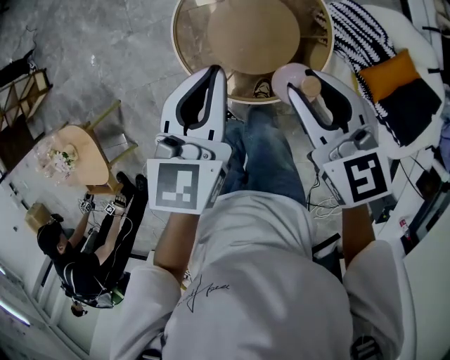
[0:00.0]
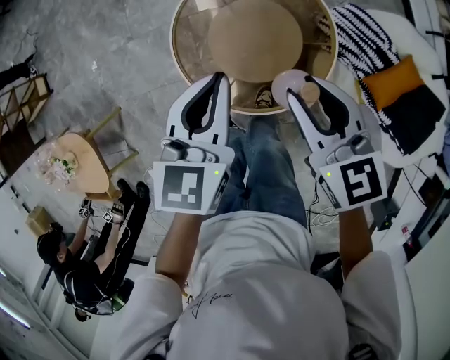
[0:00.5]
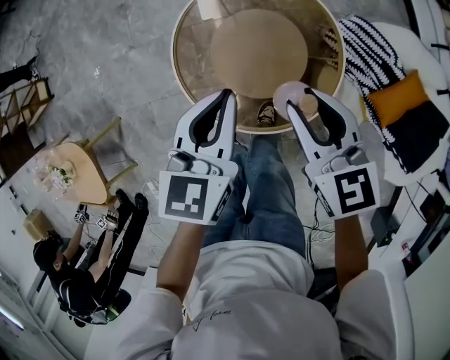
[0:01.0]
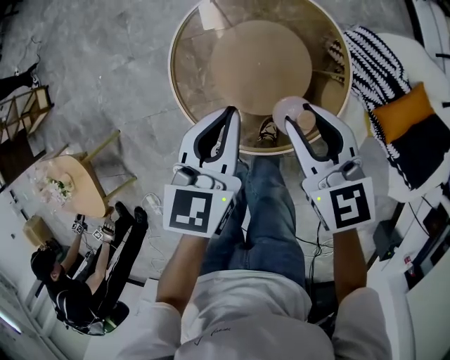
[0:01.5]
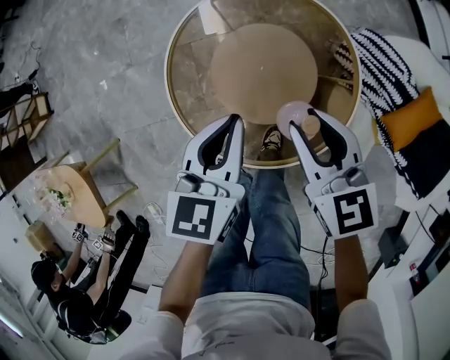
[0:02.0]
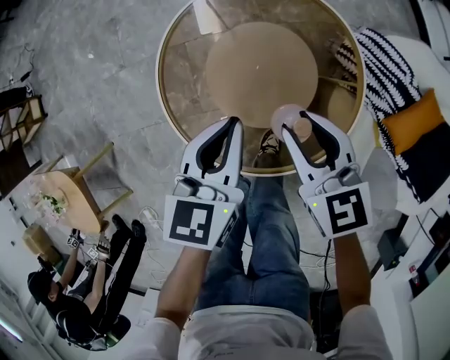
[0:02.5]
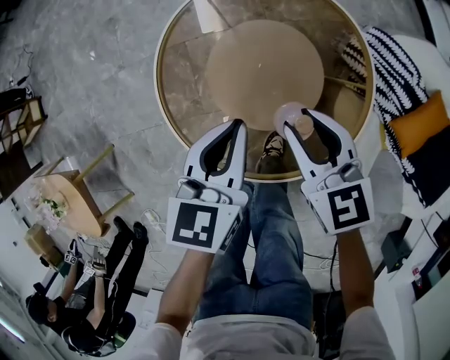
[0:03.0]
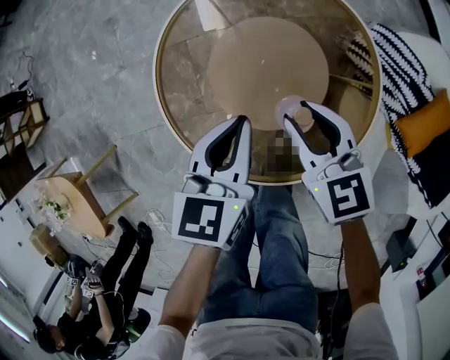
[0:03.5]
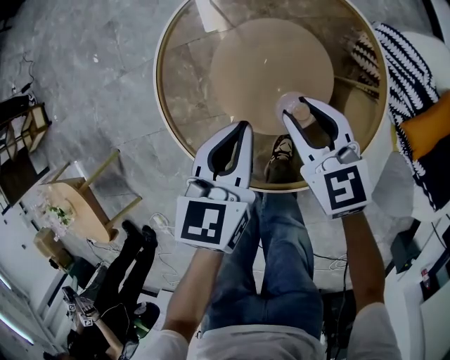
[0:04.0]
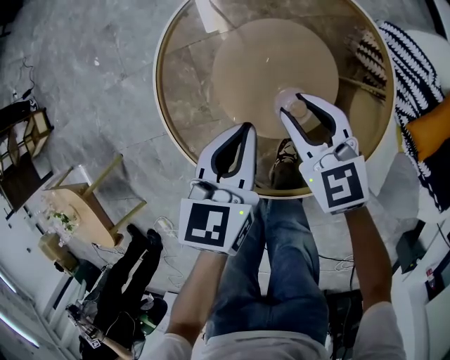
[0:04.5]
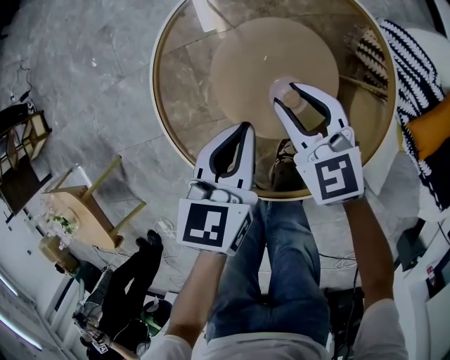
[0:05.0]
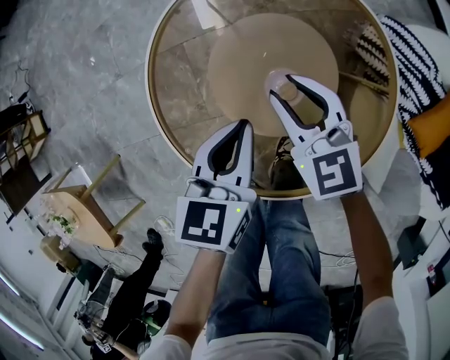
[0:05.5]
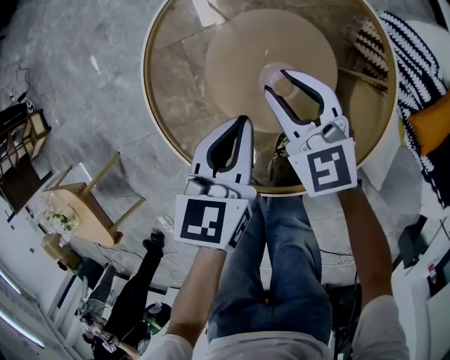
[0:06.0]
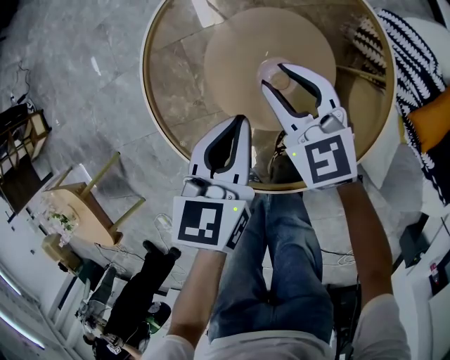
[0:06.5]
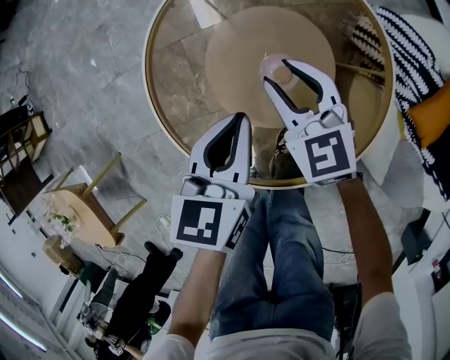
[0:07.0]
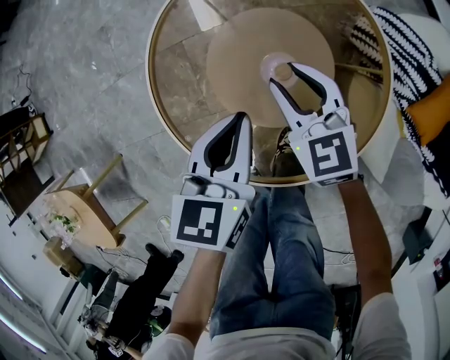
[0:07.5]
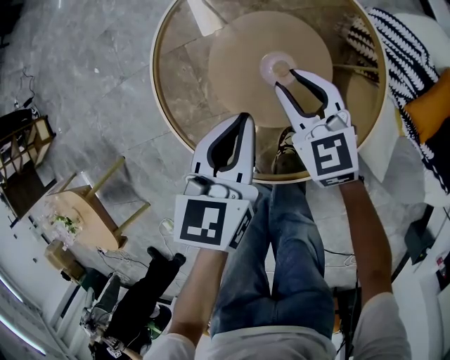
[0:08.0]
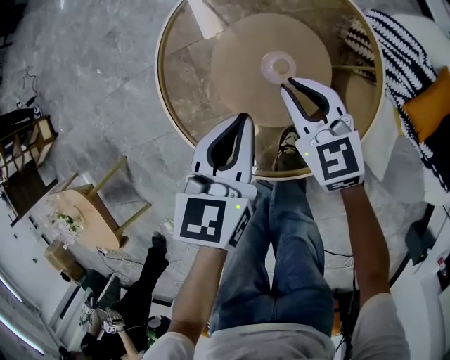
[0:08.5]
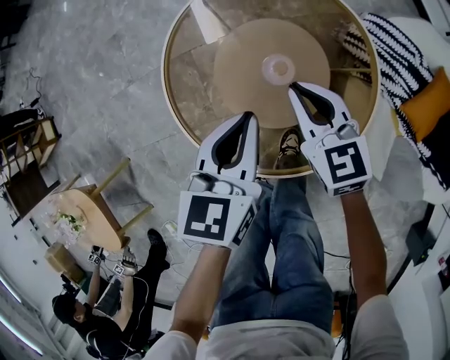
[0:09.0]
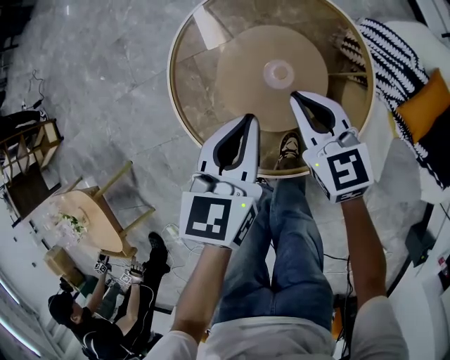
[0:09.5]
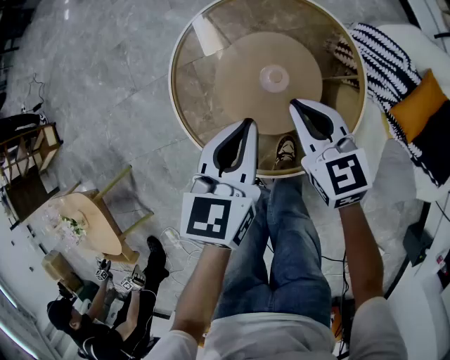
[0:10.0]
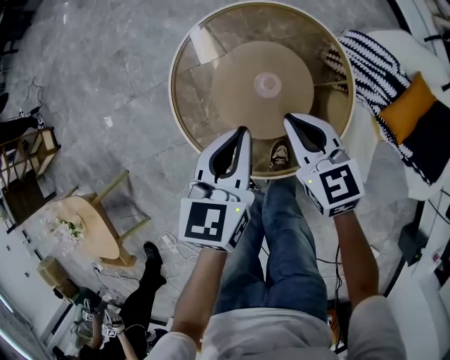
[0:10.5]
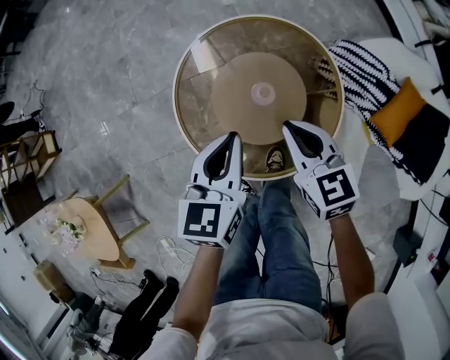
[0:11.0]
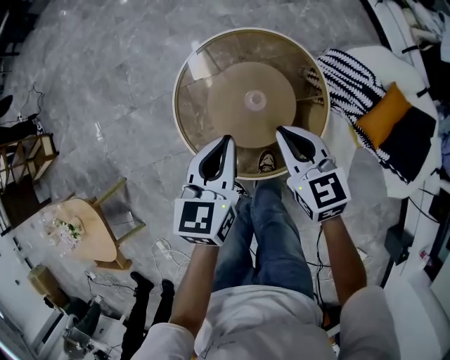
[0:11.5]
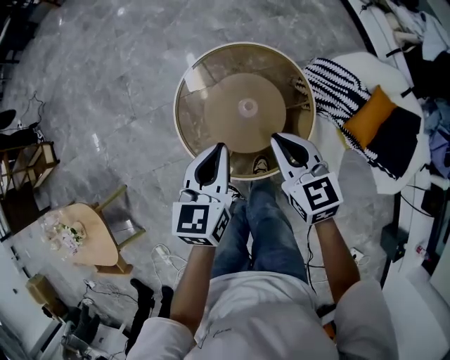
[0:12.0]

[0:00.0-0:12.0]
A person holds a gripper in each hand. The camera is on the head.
0:00.0 to 0:02.0: The two grippers go some 20 cm downward.
0:02.0 to 0:04.0: The two grippers go some 15 cm downward.
0:04.0 to 0:06.0: The right gripper changes place by some 5 cm.
0:06.0 to 0:08.0: The left gripper moves some 5 cm.
0:08.0 to 0:10.0: Both grippers move upward, some 10 cm. The right gripper closes.
0:10.0 to 0:12.0: The grippers both shift upward by some 15 cm.

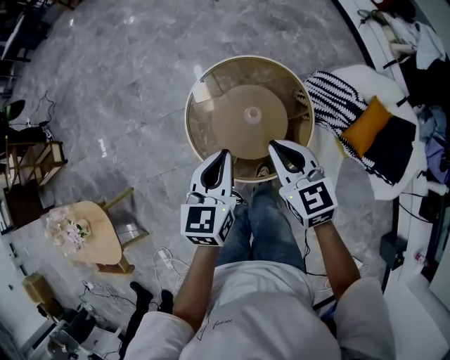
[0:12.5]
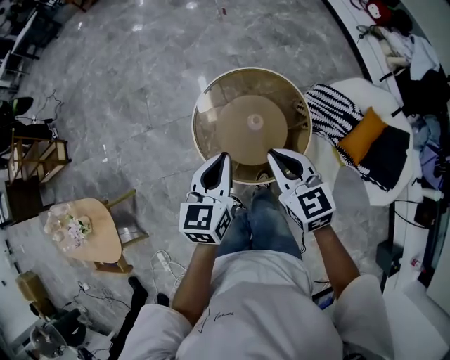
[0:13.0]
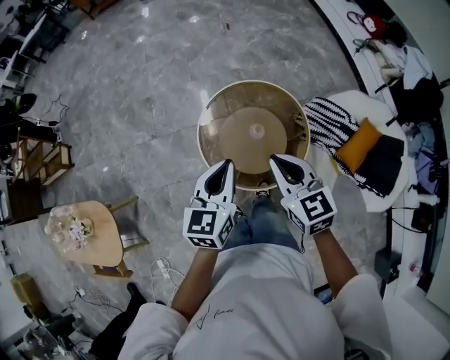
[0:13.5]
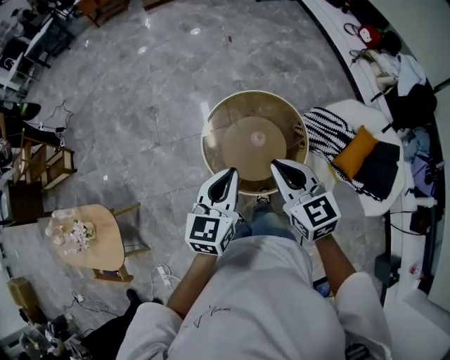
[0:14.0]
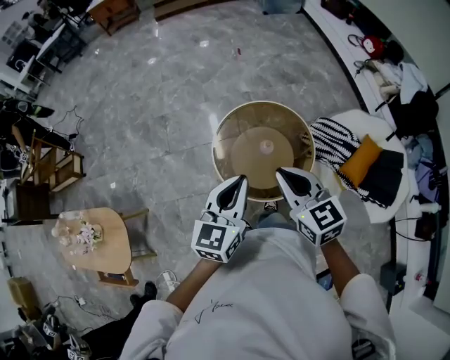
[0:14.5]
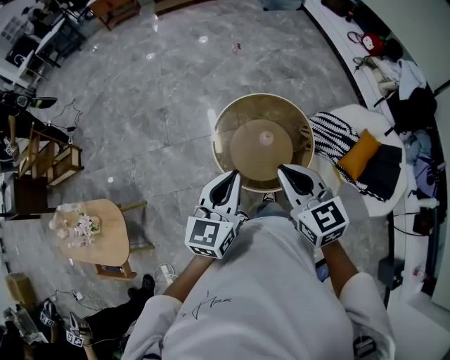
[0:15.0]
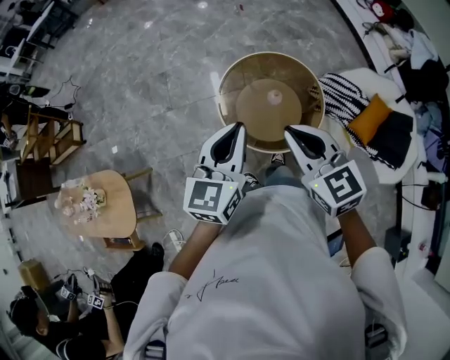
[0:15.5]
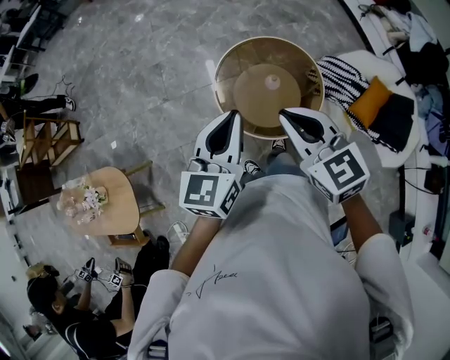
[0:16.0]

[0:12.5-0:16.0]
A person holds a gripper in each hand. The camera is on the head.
0:12.5 to 0:14.5: Both grippers move upward and backward, roughly 20 cm.
0:14.5 to 0:16.0: The right gripper ends up about 5 cm from where it was; the left gripper is displaced to the left by approximately 5 cm.

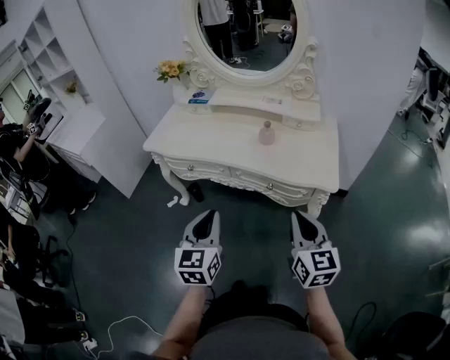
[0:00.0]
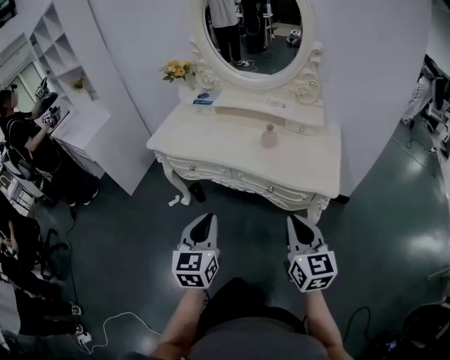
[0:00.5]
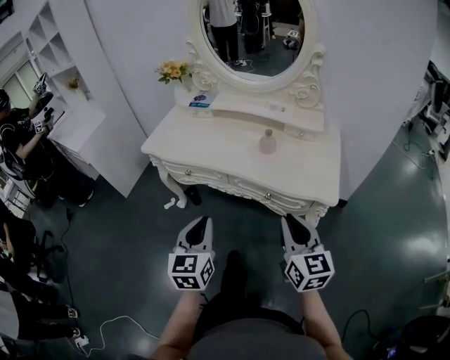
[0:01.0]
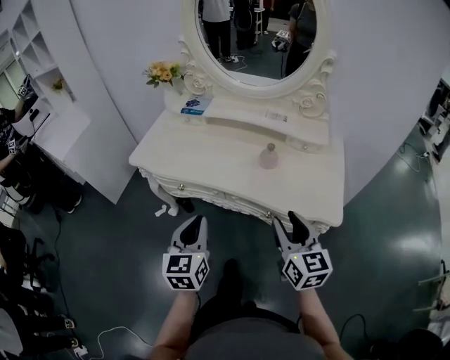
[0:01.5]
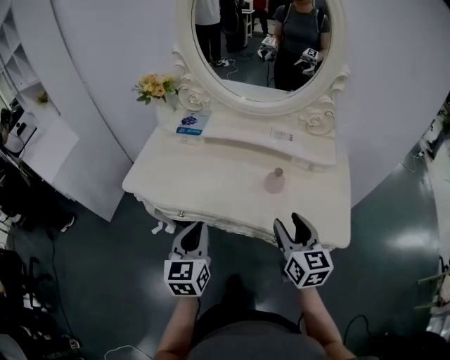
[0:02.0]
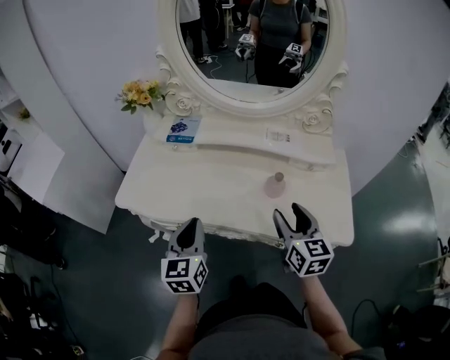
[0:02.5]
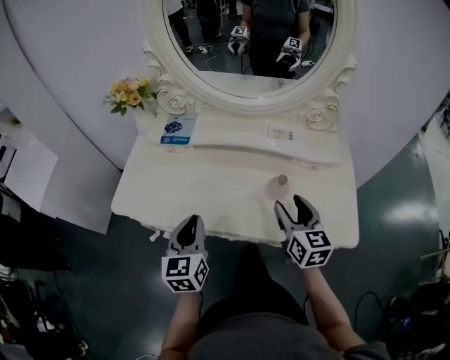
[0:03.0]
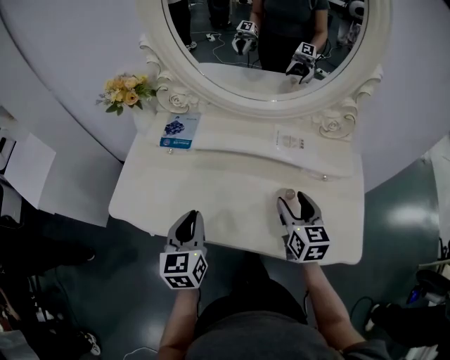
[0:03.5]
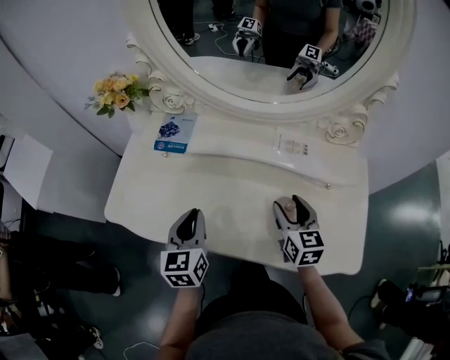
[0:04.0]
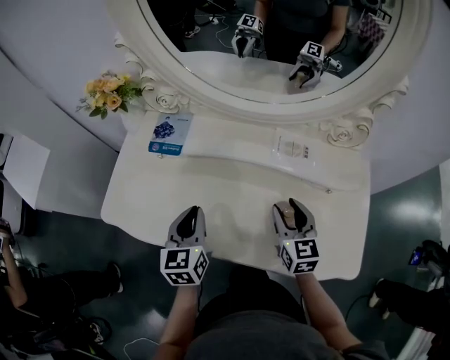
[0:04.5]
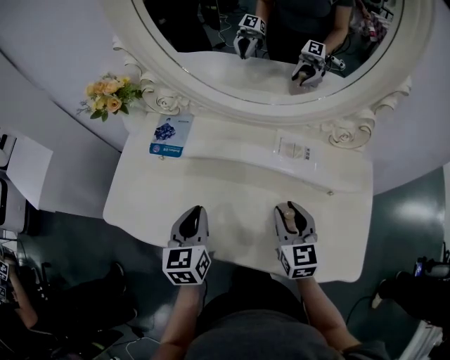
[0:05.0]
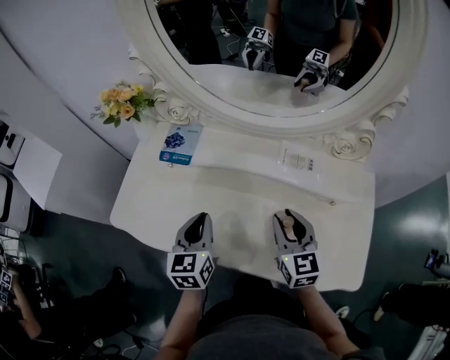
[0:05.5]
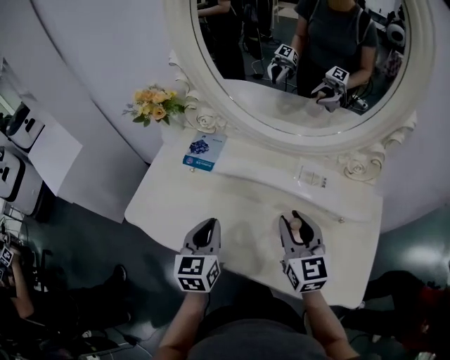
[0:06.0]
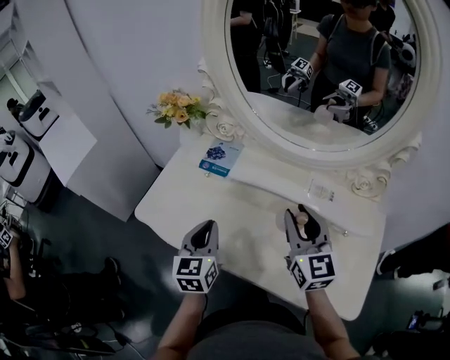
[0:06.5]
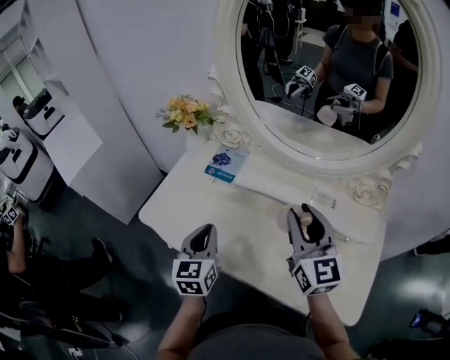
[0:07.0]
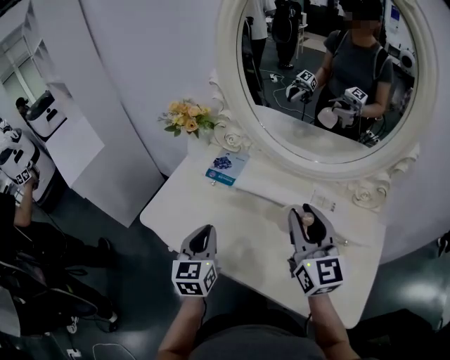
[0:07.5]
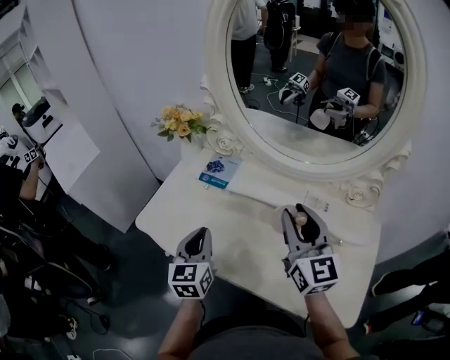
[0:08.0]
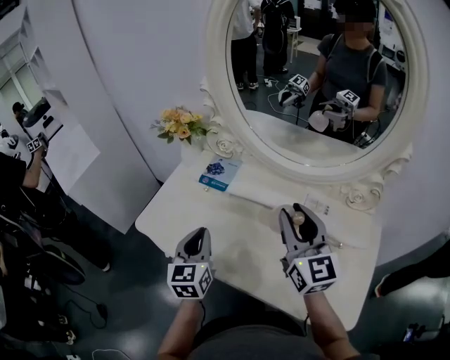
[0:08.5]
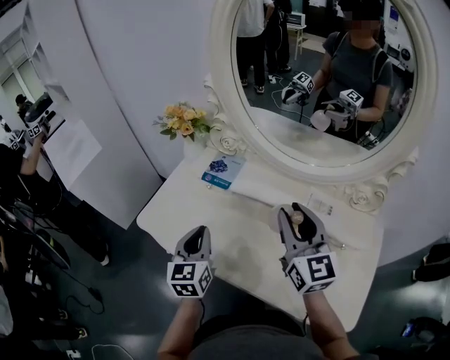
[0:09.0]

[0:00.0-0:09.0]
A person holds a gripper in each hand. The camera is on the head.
0:00.0 to 0:02.0: Both grippers move forward, about 25 cm. The right gripper opens.
0:02.0 to 0:04.5: The left gripper heads forward, covering roughly 20 cm. The right gripper moves forward and downward, roughly 25 cm.
0:04.5 to 0:07.0: The left gripper heads to the left and upward, covering some 10 cm; the right gripper shifts approximately 20 cm upward and to the left, and turns by roughly 30 degrees.
0:07.0 to 0:09.0: The grippers stay close to where they were, moving slightly.

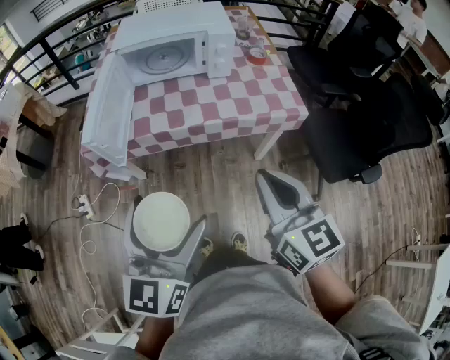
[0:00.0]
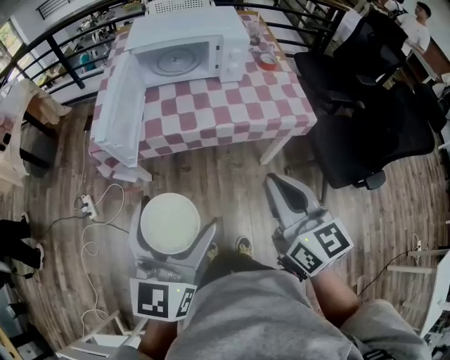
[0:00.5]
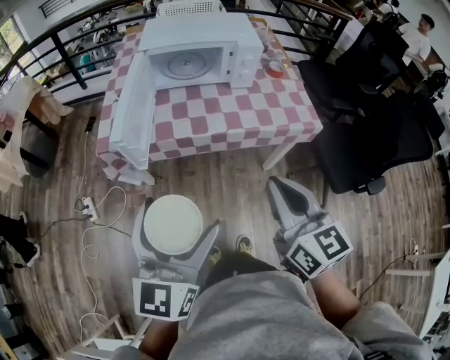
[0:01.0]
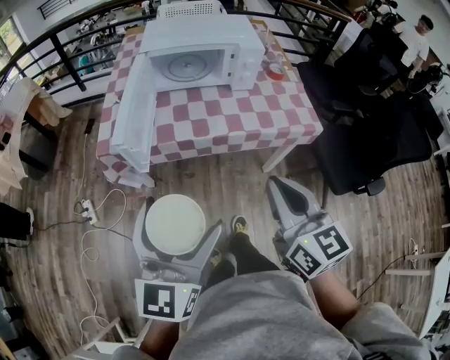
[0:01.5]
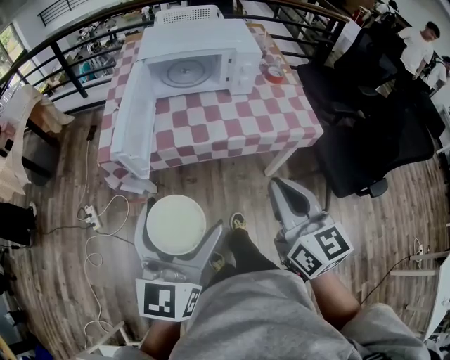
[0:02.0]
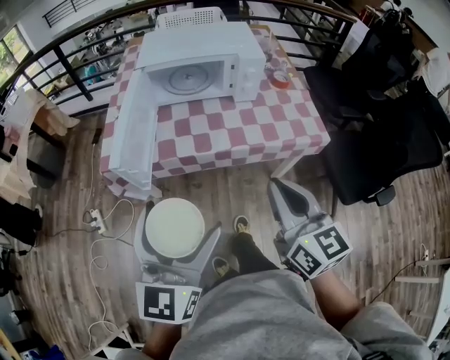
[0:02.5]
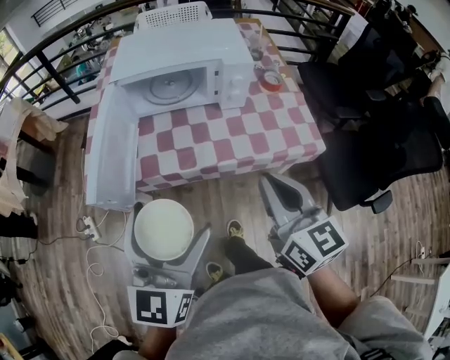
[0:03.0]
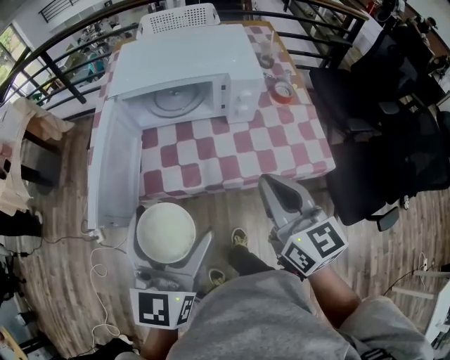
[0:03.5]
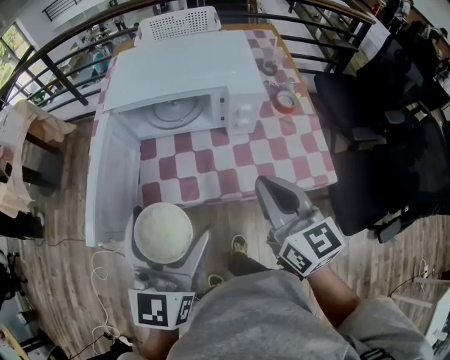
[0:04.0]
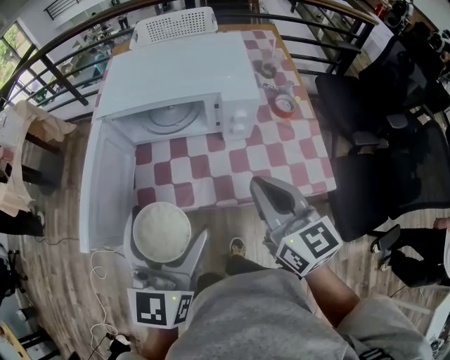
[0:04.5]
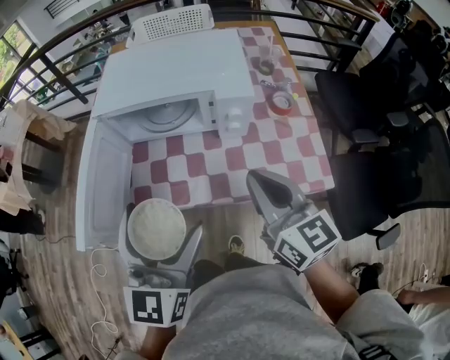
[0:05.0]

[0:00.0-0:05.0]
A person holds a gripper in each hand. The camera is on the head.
0:00.0 to 0:02.5: Both grippers move forward and to the left, roughly 10 cm.
0:02.5 to 0:05.0: The left gripper shifts some 25 cm forward and to the right; the right gripper travels forward by about 25 cm.
